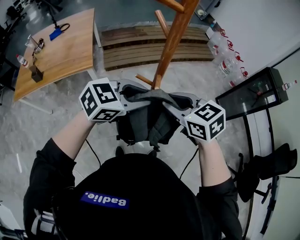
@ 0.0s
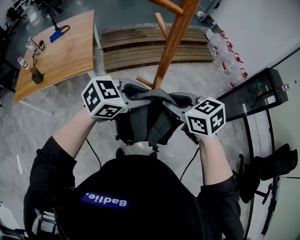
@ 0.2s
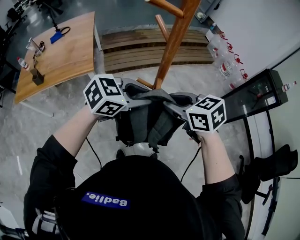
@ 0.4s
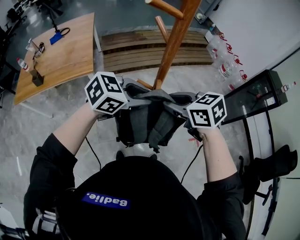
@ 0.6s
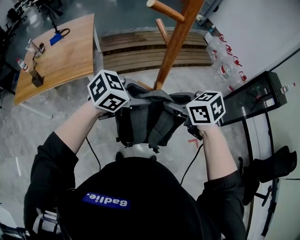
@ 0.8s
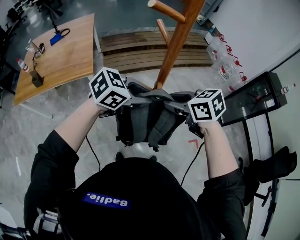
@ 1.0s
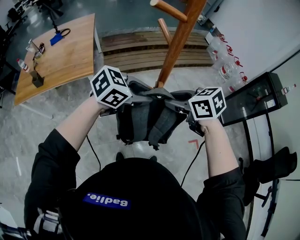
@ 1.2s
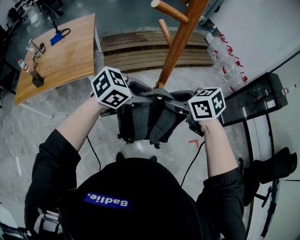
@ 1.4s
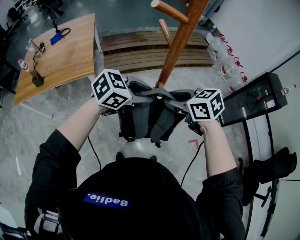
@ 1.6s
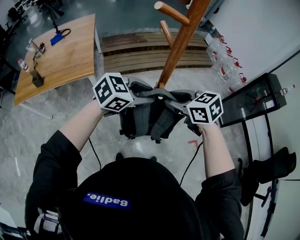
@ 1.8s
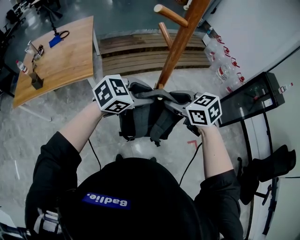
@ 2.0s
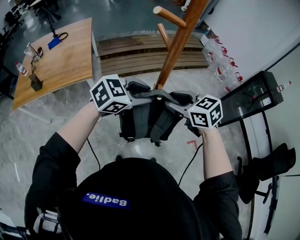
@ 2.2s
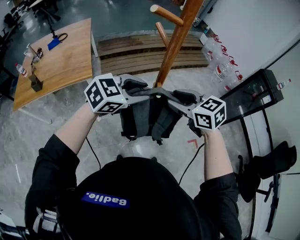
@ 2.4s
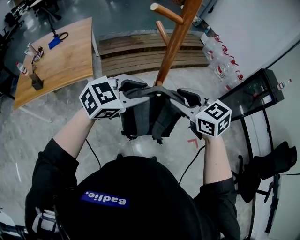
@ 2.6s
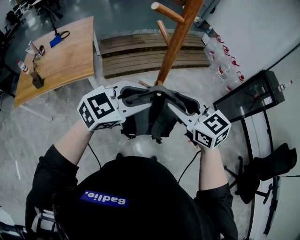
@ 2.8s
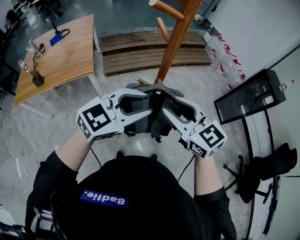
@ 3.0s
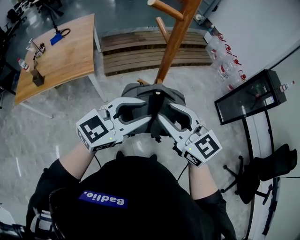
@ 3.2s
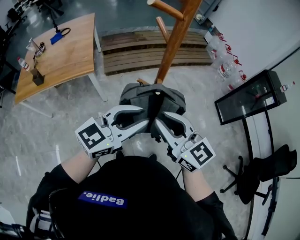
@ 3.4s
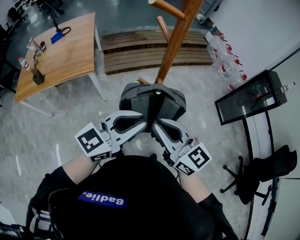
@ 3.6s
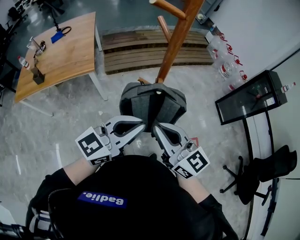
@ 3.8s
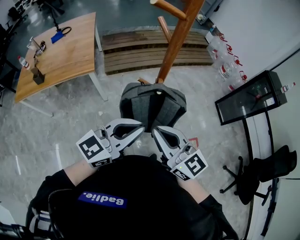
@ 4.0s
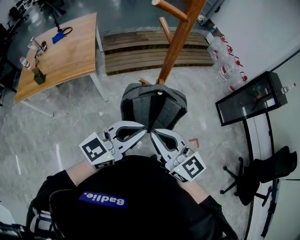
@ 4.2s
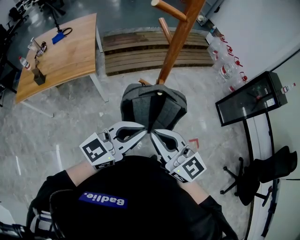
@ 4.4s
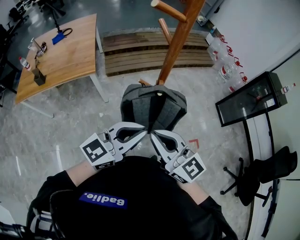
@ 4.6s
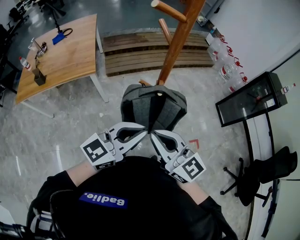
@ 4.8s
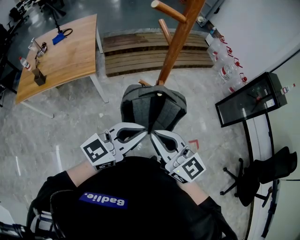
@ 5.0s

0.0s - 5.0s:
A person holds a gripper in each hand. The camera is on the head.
0.0s - 1.6s: The right gripper moves some 5 cm. The left gripper moves approximately 5 cm.
1.6s - 3.4s: The left gripper shifts by some 15 cm, and swivels approximately 30 degrees. Meanwhile the right gripper moves about 15 cm, and points its fingers about 30 degrees further upward.
3.4s - 5.0s: The left gripper closes its fingers. Meanwhile the right gripper ends up roughly 5 cm from where it was.

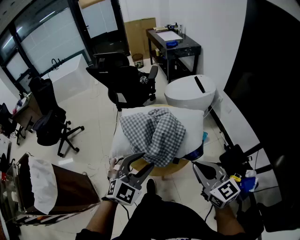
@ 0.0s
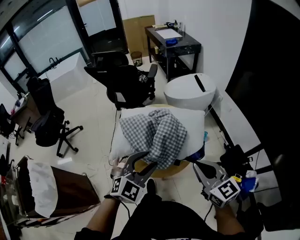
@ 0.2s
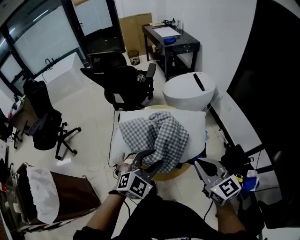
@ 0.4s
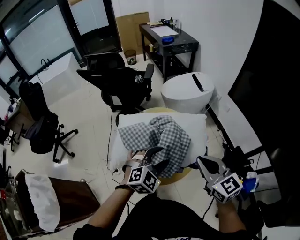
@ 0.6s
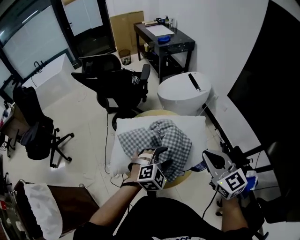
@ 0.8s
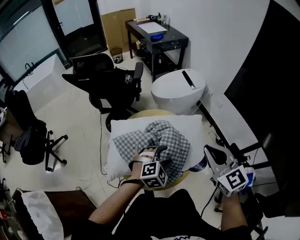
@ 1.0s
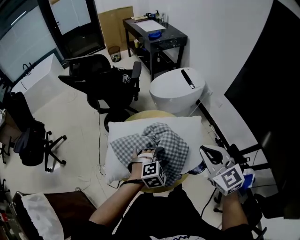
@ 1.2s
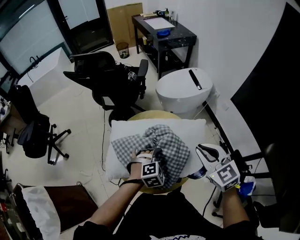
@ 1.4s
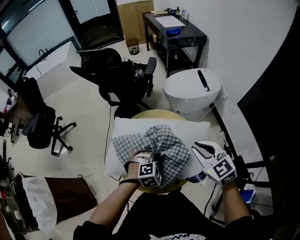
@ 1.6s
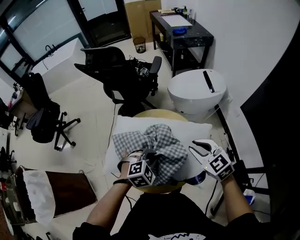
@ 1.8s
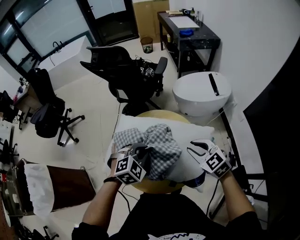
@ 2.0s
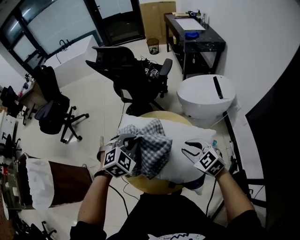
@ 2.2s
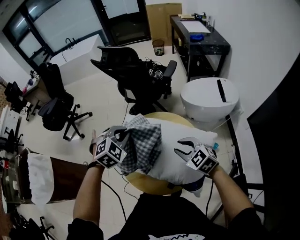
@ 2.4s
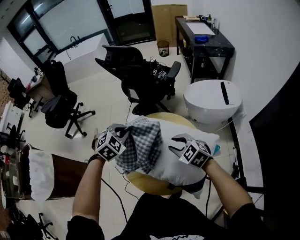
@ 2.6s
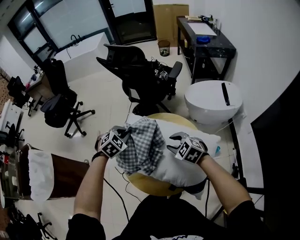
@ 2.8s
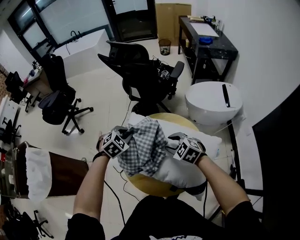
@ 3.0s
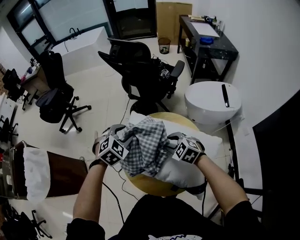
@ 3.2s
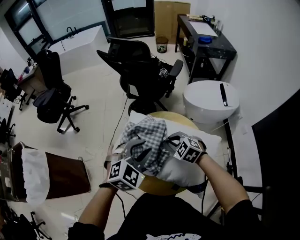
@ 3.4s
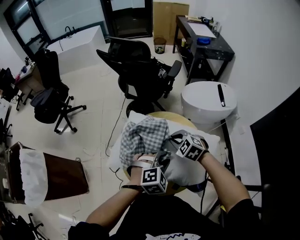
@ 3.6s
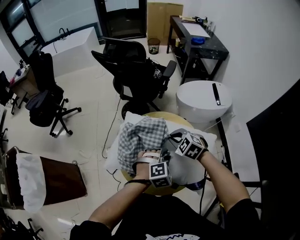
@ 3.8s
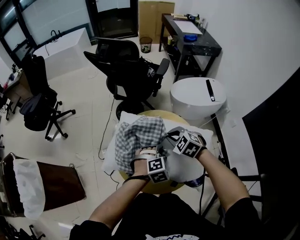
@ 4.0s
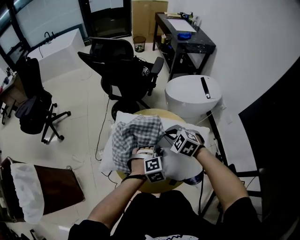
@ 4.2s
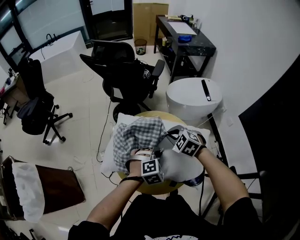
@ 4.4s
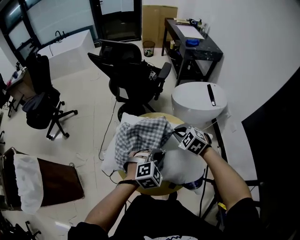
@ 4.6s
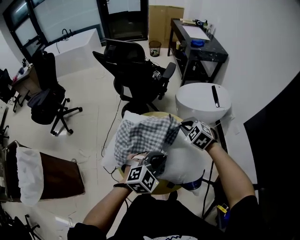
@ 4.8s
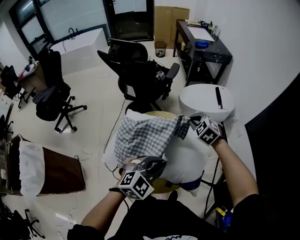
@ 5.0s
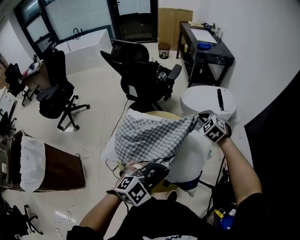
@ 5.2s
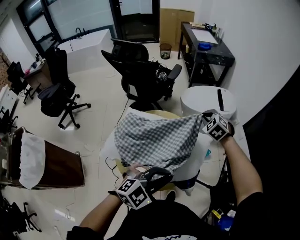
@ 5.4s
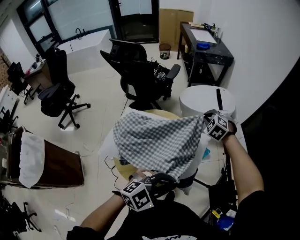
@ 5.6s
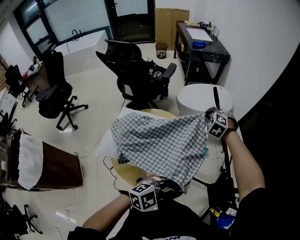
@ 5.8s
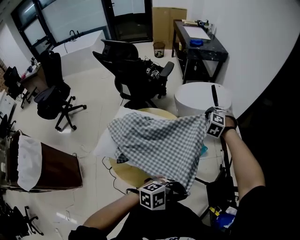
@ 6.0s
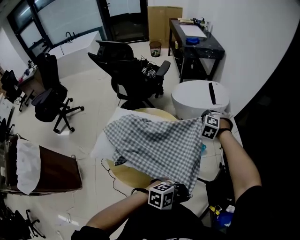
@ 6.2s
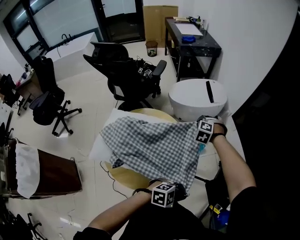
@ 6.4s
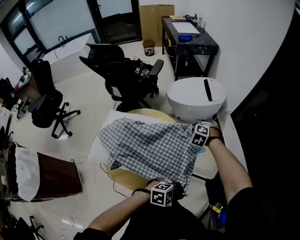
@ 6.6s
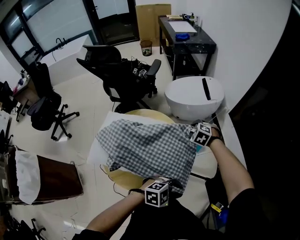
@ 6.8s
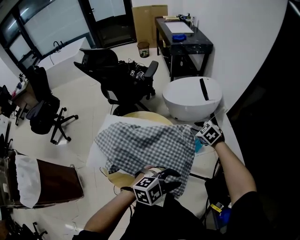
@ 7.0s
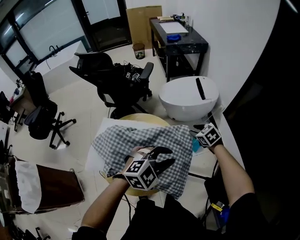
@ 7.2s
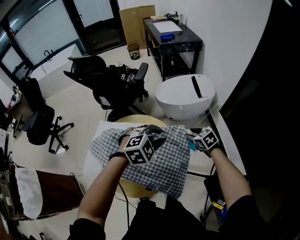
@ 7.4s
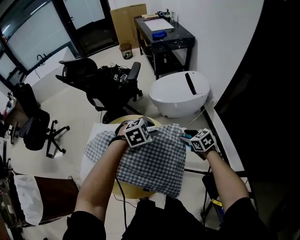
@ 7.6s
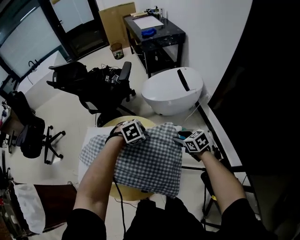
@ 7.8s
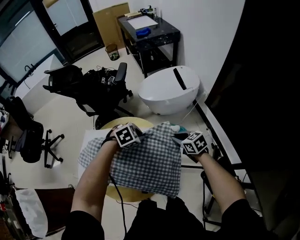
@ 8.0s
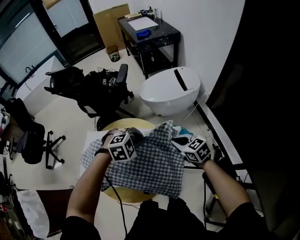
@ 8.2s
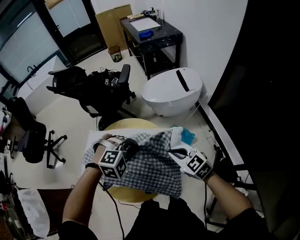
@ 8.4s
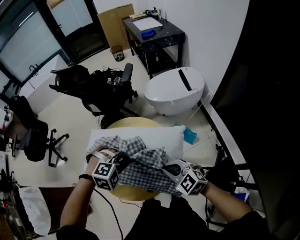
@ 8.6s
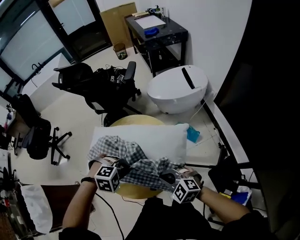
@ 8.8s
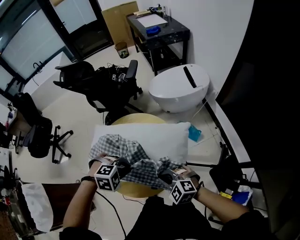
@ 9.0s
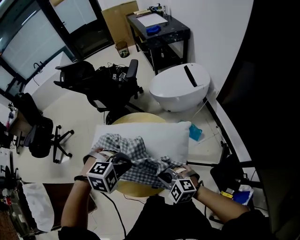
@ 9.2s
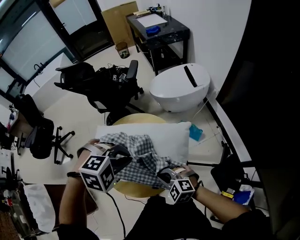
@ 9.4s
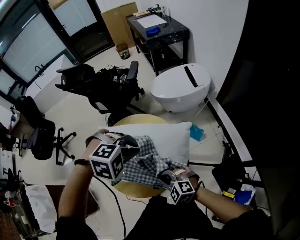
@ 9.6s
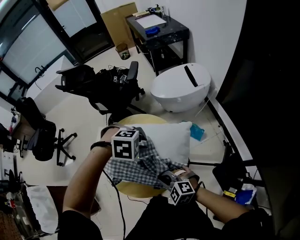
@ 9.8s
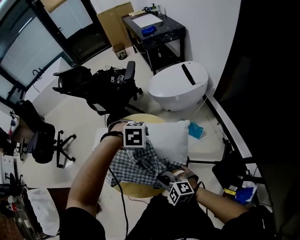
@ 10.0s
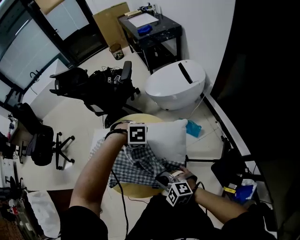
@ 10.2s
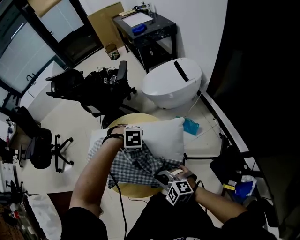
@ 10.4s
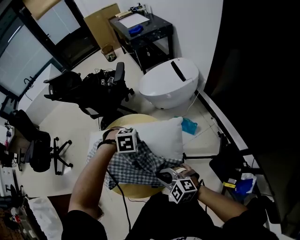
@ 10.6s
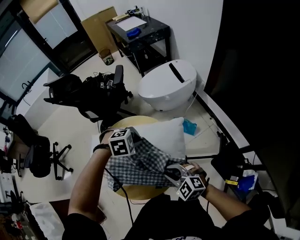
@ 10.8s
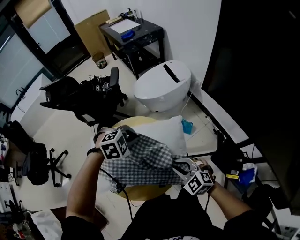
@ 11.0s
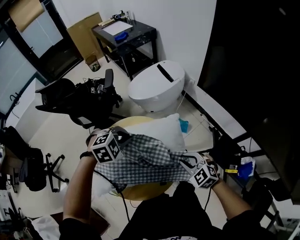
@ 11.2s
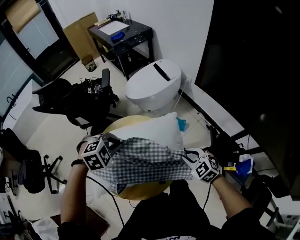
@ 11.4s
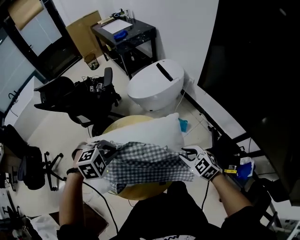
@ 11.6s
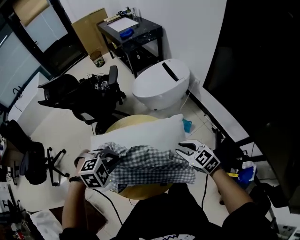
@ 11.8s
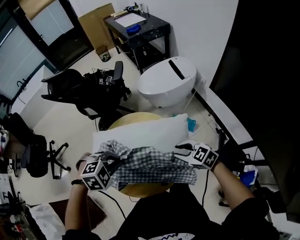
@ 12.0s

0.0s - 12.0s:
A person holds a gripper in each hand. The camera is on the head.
0.0s - 1.6s: The right gripper heads forward, covering some 25 cm, and changes its angle by approximately 20 degrees. Meanwhile the left gripper moves forward and downward, about 30 cm, and points its fingers about 30 degrees further downward.
1.6s - 3.0s: The right gripper shifts by some 20 cm, rotates about 40 degrees, and opens up. Meanwhile the left gripper travels upward and back again, about 15 cm each way, and rotates about 40 degrees.
3.0s - 4.4s: The left gripper travels to the right and backward by approximately 20 cm, changes its angle by some 30 degrees, and opens and closes again. Meanwhile the right gripper closes.
4.4s - 6.0s: The right gripper shifts by about 30 cm, and swivels roughly 30 degrees, while the left gripper ends up about 30 cm from where it was, and rotates approximately 50 degrees.
6.0s - 7.6s: The right gripper moves downward, some 10 cm, rolls clockwise, seen from behind, by about 60 degrees, and opens its fingers. The left gripper moves up and down over some 15 cm, changing direction 2 times, changes its angle by some 40 degrees, and opens its fingers.
7.6s - 9.0s: The left gripper goes up and down, about 10 cm each way, reversing 2 times, rotates approximately 20 degrees, and closes up, while the right gripper ends up some 30 cm from where it was, twists roughly 40 degrees counterclockwise, seen from behind, and closes its fingers.
9.0s - 10.4s: The left gripper travels upward and back again, approximately 15 cm each way, rotates roughly 20 degrees, and opens up.
10.4s - 12.0s: The left gripper shifts by roughly 15 cm, rotates roughly 30 degrees, and closes, while the right gripper changes place by about 10 cm, rotates approximately 30 degrees, and opens.

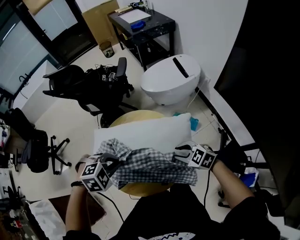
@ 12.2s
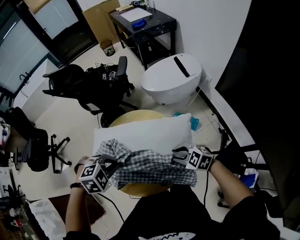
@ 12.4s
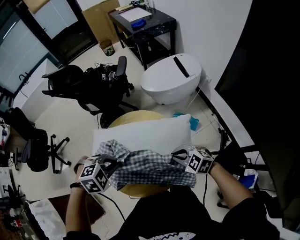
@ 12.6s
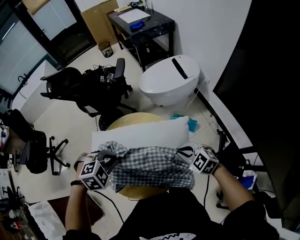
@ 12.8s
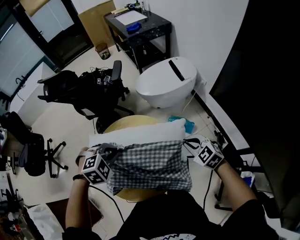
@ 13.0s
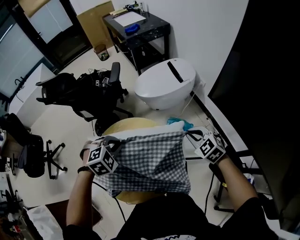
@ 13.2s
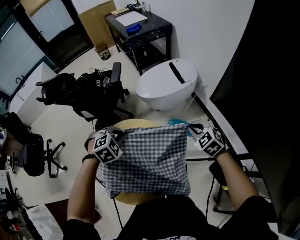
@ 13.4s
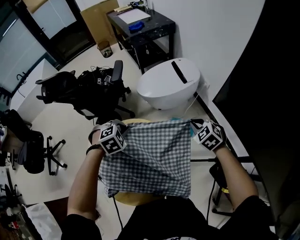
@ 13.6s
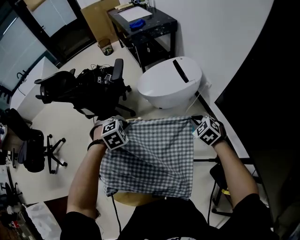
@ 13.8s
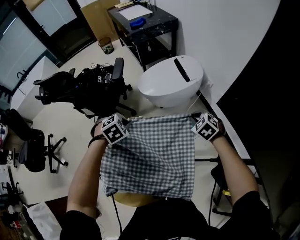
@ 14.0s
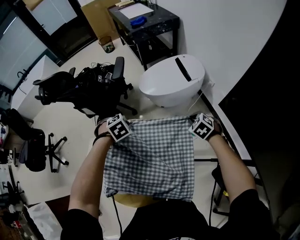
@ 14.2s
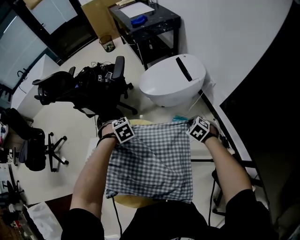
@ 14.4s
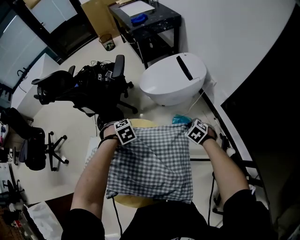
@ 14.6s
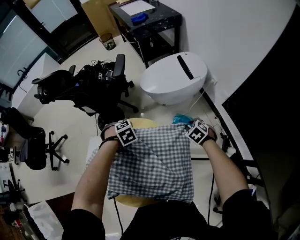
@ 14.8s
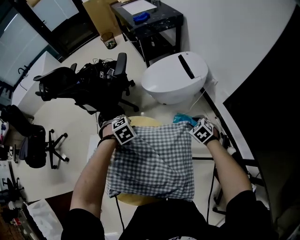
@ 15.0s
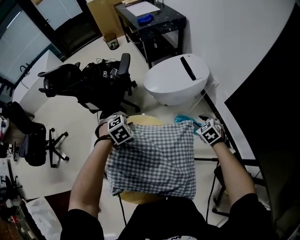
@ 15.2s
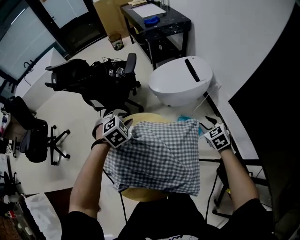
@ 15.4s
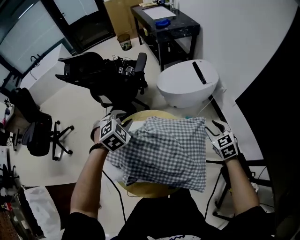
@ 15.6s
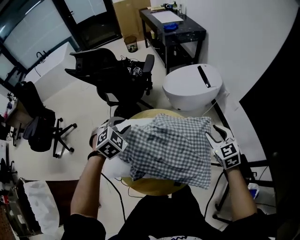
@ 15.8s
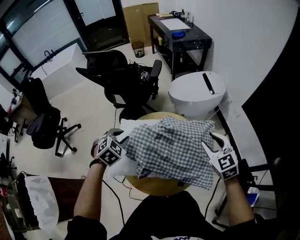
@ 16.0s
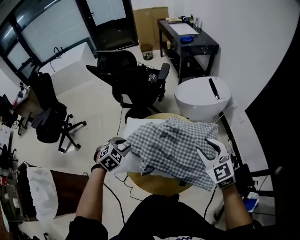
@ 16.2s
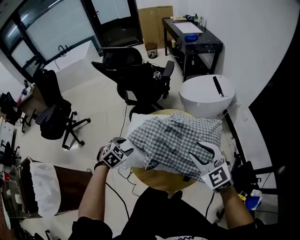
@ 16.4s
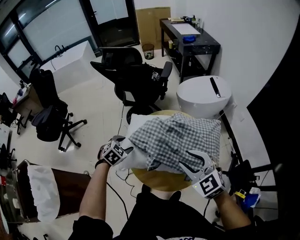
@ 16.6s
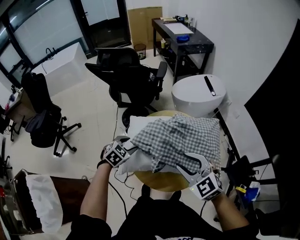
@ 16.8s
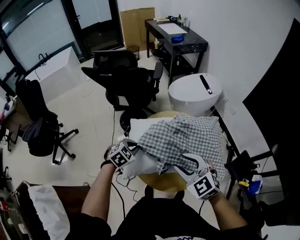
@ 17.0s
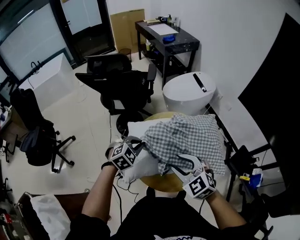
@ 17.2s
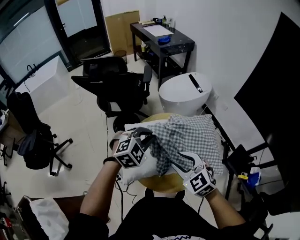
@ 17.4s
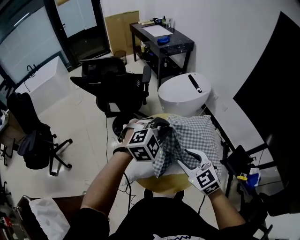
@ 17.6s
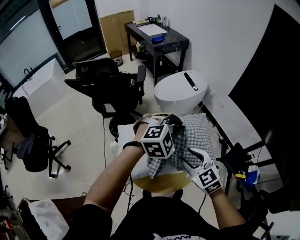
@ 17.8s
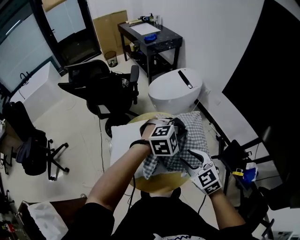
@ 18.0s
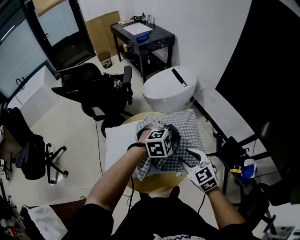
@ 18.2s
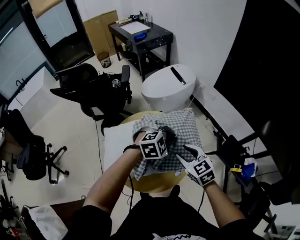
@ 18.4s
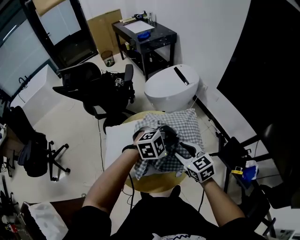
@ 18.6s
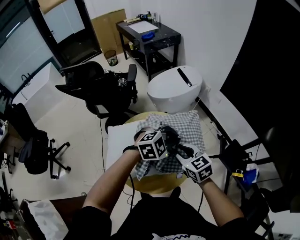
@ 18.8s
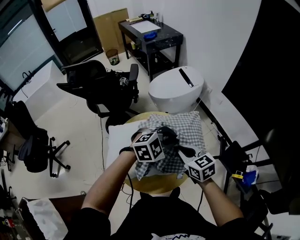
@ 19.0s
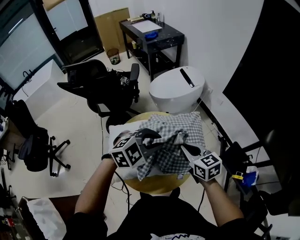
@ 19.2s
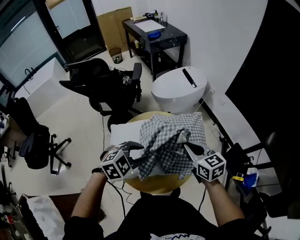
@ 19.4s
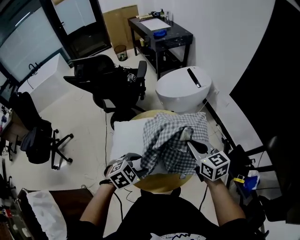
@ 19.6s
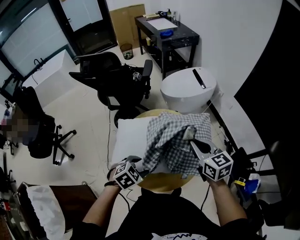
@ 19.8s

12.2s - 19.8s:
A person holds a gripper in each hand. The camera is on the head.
12.2s - 13.8s: The right gripper ends up approximately 25 cm from where it was, turns by some 30 degrees, and closes. The left gripper ends up approximately 25 cm from where it was.
13.8s - 15.2s: The right gripper is displaced downward by about 5 cm, and opens up, while the left gripper travels downward and back again, roughly 10 cm each way, and opens its fingers.
15.2s - 16.8s: The right gripper goes approximately 50 cm to the left, backward and upward, and swivels roughly 40 degrees. Meanwhile the left gripper moves to the left and backward, roughly 30 cm, swivels roughly 30 degrees, and opens its fingers.
16.8s - 18.2s: The left gripper changes place by approximately 35 cm, rotates around the line of its fingers by some 40 degrees, clockwise from behind, and closes its fingers; the right gripper ends up some 15 cm from where it was, and swivels approximately 30 degrees.
18.2s - 19.8s: The left gripper is displaced to the left, backward and downward by about 25 cm, rotates around the line of its fingers by approximately 40 degrees, counterclockwise from behind, and opens its fingers, while the right gripper goes approximately 5 cm forward, rotates roughly 20 degrees, and closes up.
